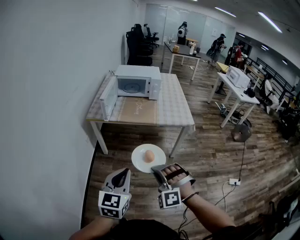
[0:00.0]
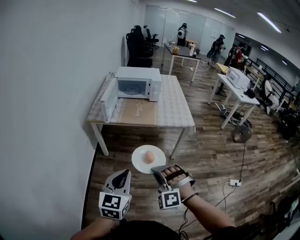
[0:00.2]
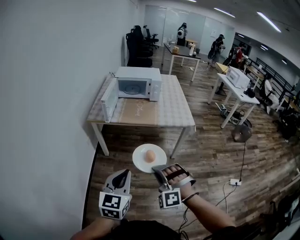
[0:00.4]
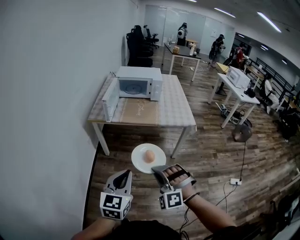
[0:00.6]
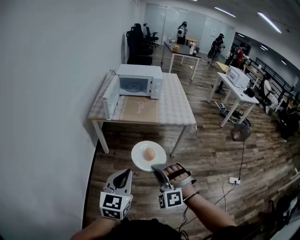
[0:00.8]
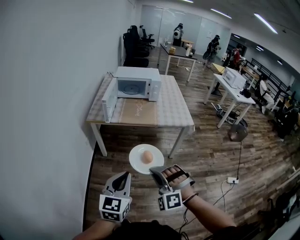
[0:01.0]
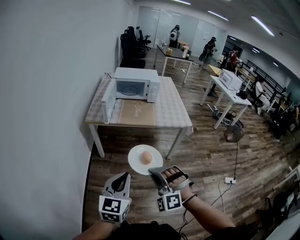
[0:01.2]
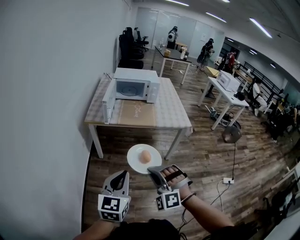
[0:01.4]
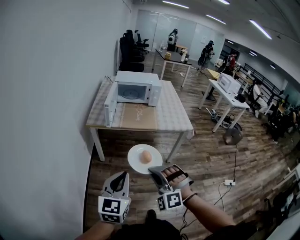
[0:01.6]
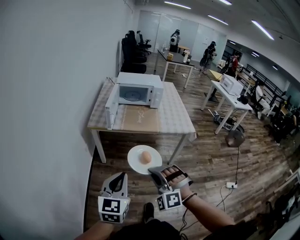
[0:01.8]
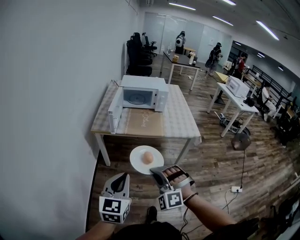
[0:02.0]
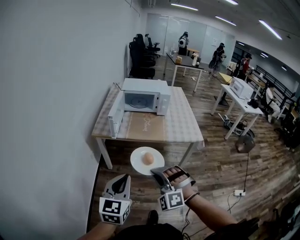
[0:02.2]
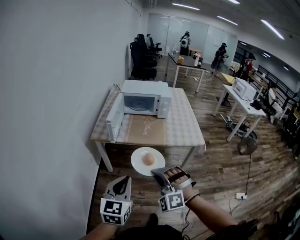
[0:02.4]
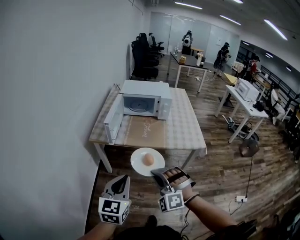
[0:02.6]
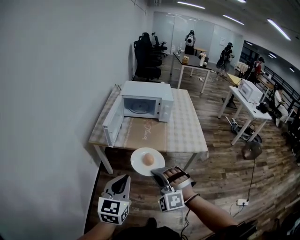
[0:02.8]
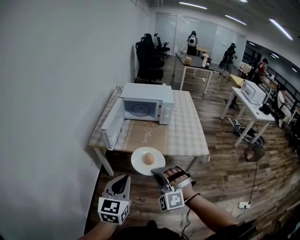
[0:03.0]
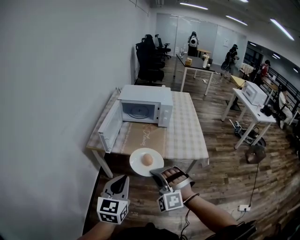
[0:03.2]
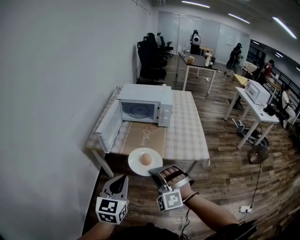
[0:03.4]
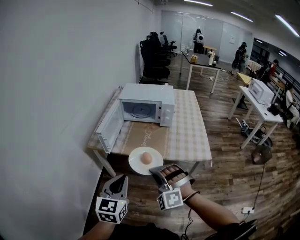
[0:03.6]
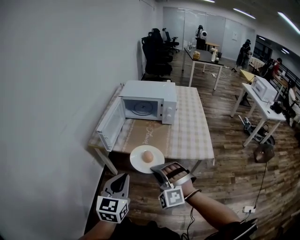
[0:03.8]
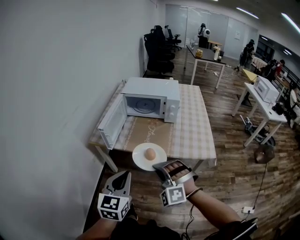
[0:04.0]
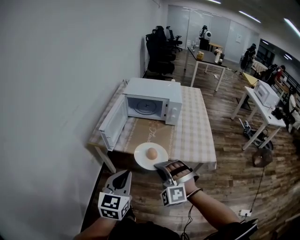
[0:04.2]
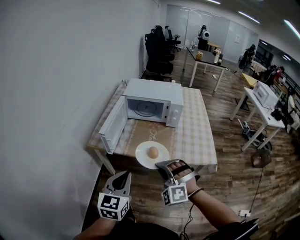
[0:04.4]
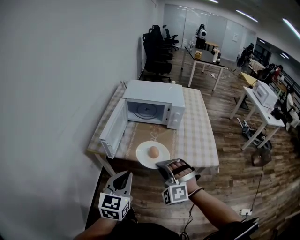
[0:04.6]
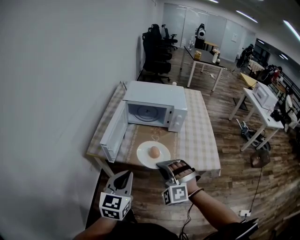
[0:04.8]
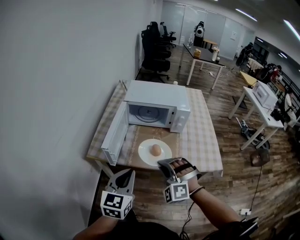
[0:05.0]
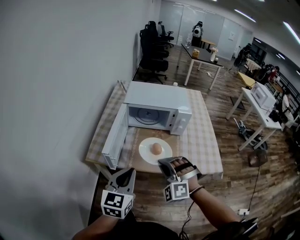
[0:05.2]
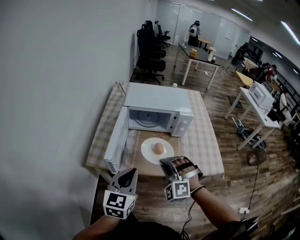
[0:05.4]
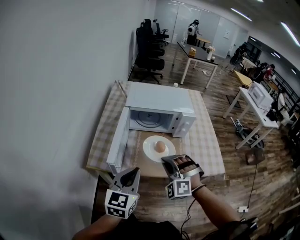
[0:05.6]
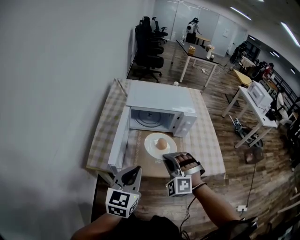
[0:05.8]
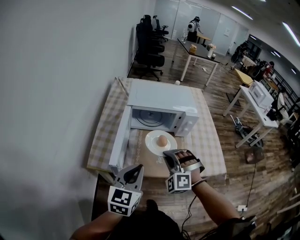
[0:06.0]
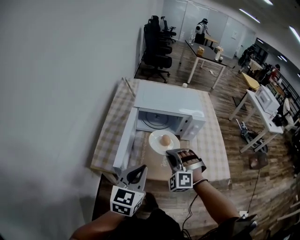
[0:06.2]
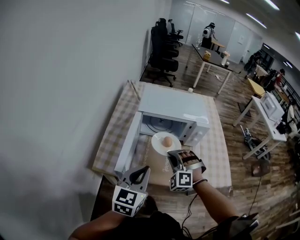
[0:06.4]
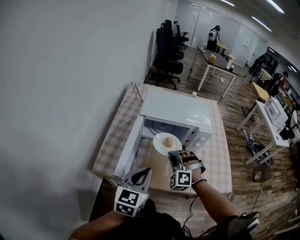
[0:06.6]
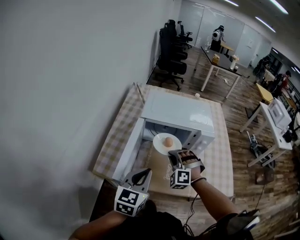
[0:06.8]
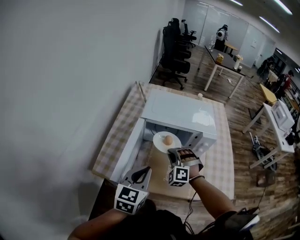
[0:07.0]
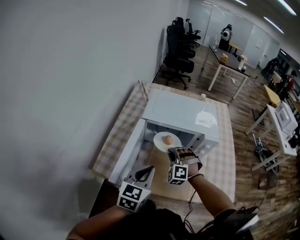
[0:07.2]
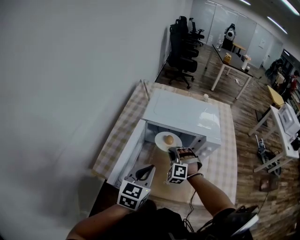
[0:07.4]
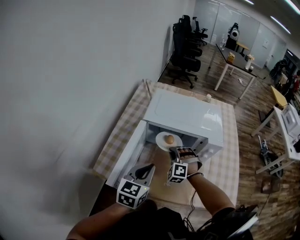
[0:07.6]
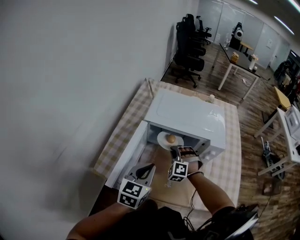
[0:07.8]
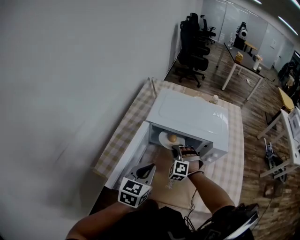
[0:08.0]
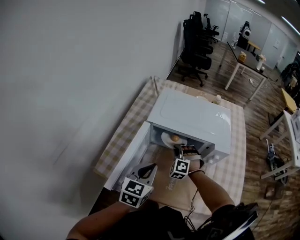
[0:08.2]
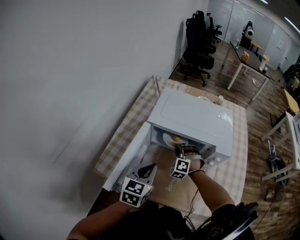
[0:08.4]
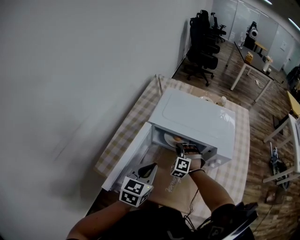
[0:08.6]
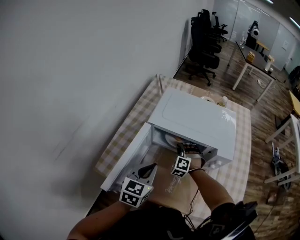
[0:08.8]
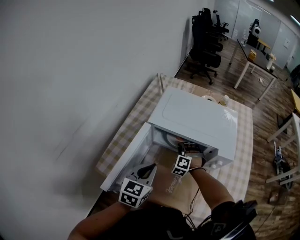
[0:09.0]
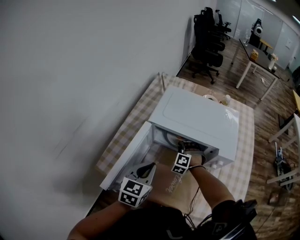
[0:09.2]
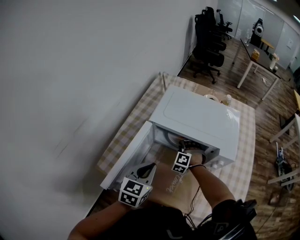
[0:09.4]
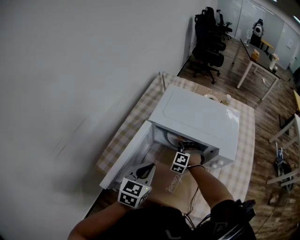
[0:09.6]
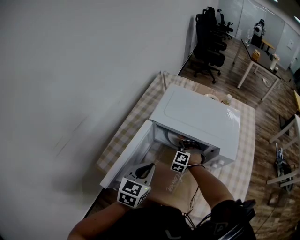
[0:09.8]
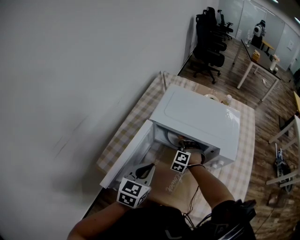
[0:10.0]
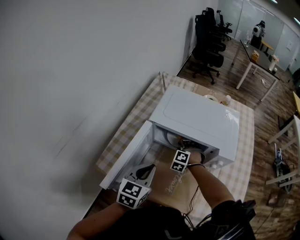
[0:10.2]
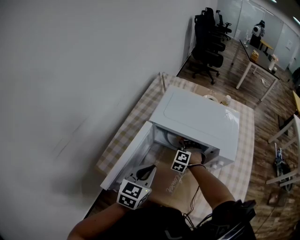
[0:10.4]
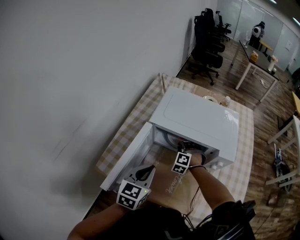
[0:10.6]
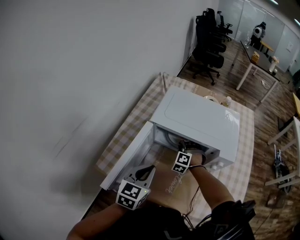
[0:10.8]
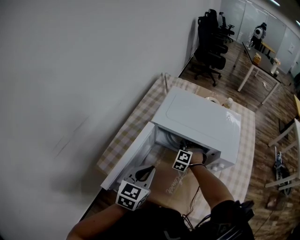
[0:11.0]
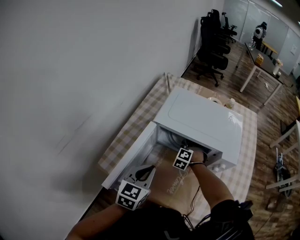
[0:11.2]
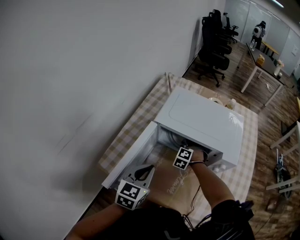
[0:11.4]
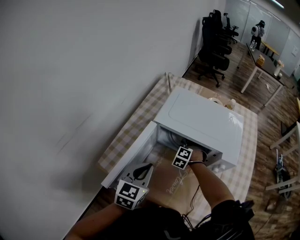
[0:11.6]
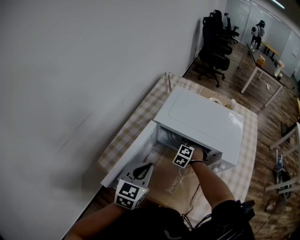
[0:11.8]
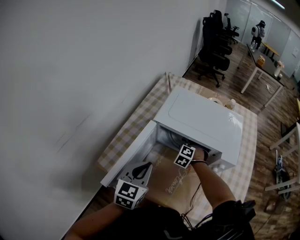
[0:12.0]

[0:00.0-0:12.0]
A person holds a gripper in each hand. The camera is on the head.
0:00.0 to 0:01.6: The left gripper shifts by approximately 10 cm.
0:01.6 to 0:03.0: The left gripper moves roughly 20 cm.
0:03.0 to 0:04.4: The left gripper shifts by approximately 10 cm.
0:04.4 to 0:06.0: The left gripper ends up approximately 20 cm from where it was.
0:06.0 to 0:07.6: The left gripper moves approximately 15 cm.
0:07.6 to 0:09.0: The left gripper changes place by approximately 5 cm.

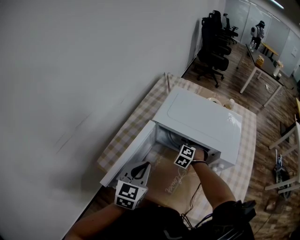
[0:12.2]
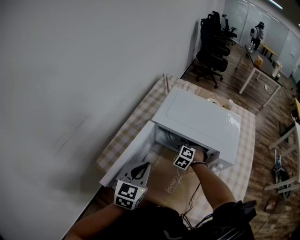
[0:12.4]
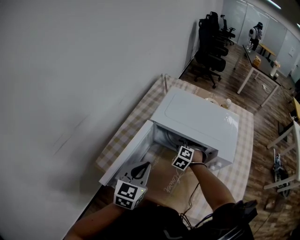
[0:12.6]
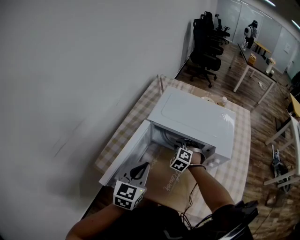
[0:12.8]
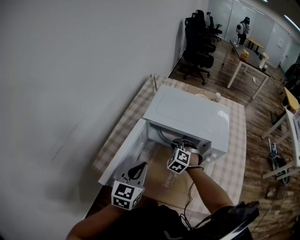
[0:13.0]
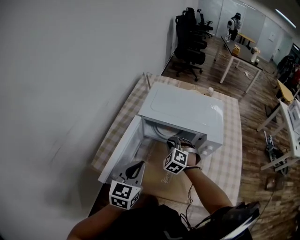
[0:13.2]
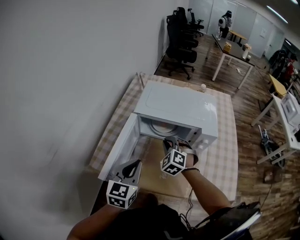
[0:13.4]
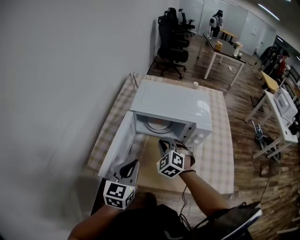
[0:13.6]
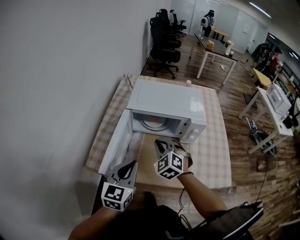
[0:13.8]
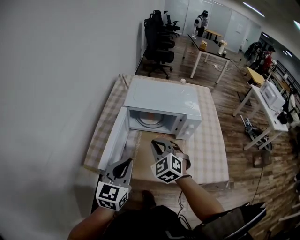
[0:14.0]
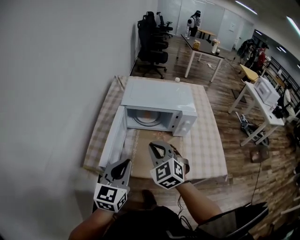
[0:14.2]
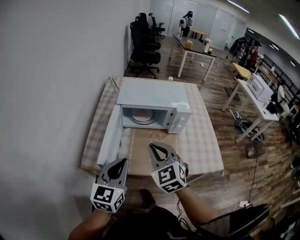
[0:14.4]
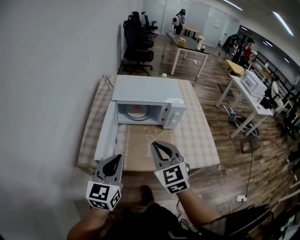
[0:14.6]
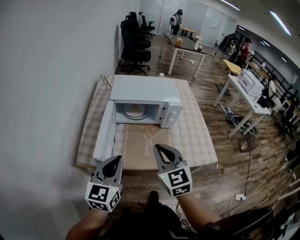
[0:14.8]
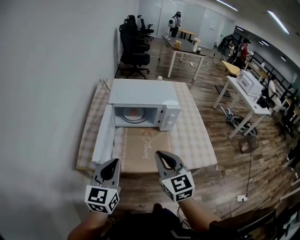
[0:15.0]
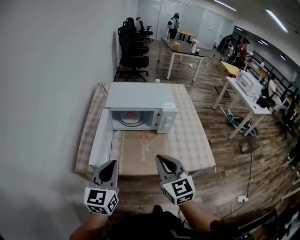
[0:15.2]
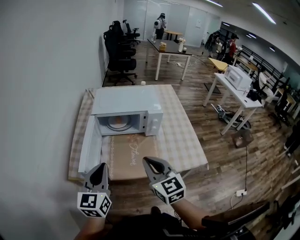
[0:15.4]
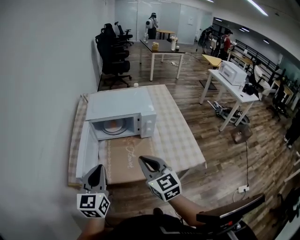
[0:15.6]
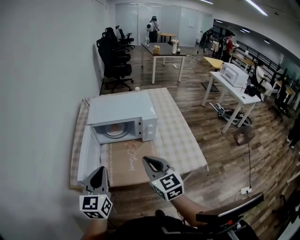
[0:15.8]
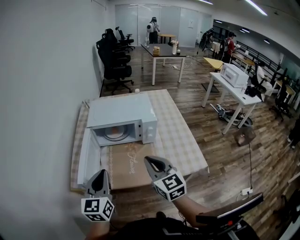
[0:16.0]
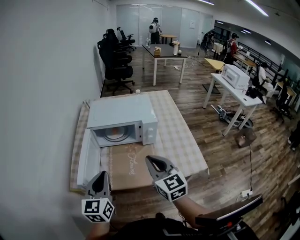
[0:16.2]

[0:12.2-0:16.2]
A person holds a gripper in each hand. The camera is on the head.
0:12.2 to 0:13.6: The left gripper ends up about 10 cm from where it was.
0:13.6 to 0:14.8: The left gripper moves roughly 15 cm.
0:14.8 to 0:16.2: The left gripper shifts by roughly 5 cm.

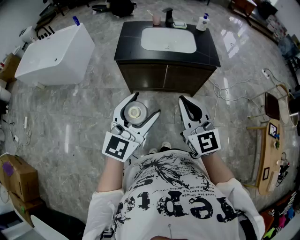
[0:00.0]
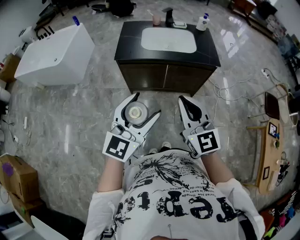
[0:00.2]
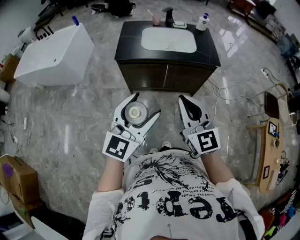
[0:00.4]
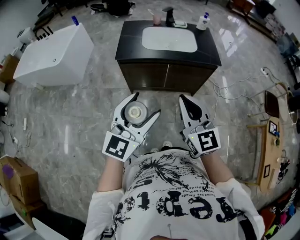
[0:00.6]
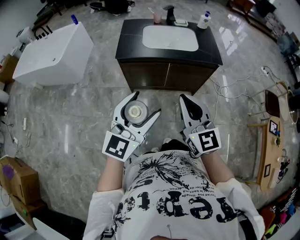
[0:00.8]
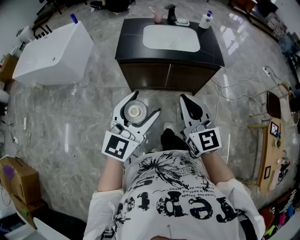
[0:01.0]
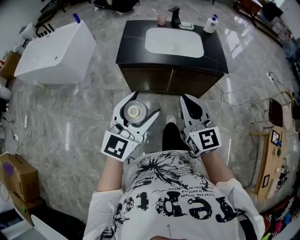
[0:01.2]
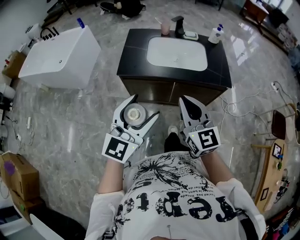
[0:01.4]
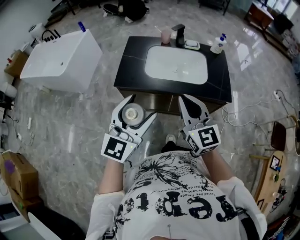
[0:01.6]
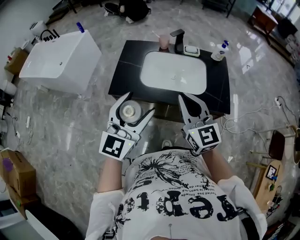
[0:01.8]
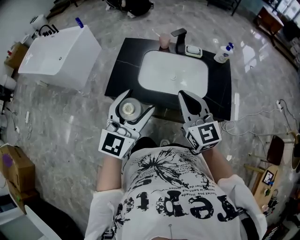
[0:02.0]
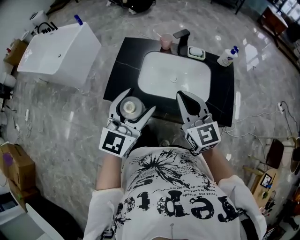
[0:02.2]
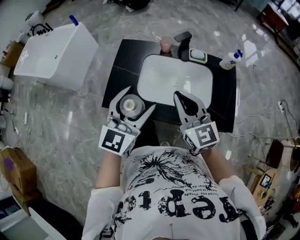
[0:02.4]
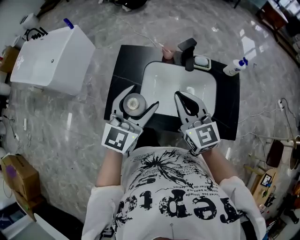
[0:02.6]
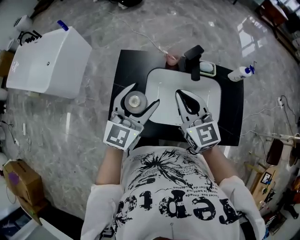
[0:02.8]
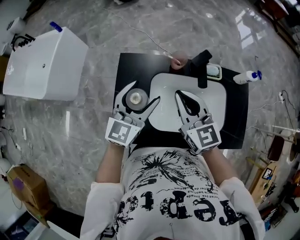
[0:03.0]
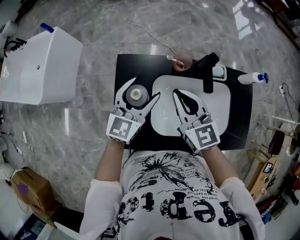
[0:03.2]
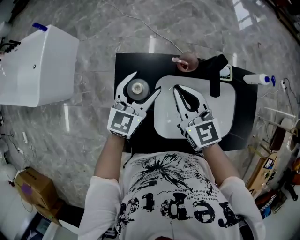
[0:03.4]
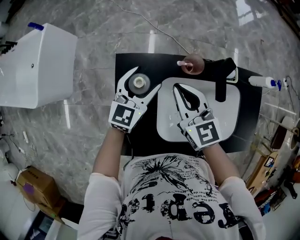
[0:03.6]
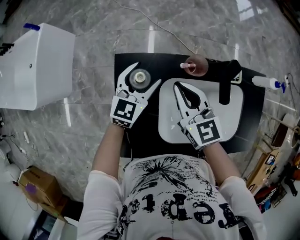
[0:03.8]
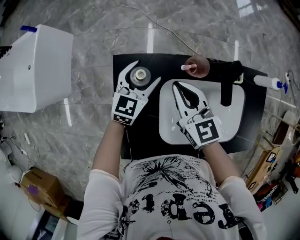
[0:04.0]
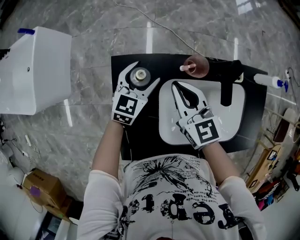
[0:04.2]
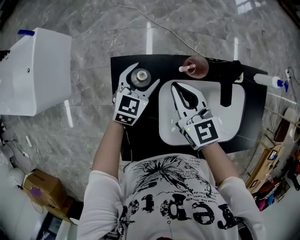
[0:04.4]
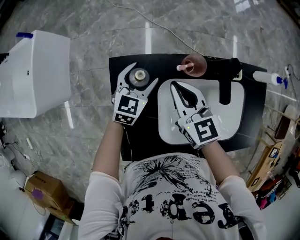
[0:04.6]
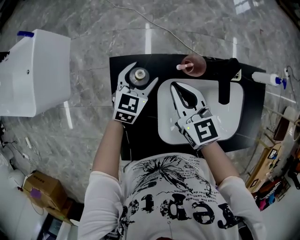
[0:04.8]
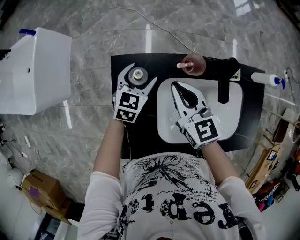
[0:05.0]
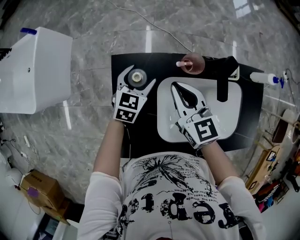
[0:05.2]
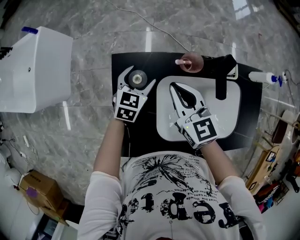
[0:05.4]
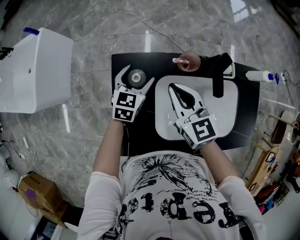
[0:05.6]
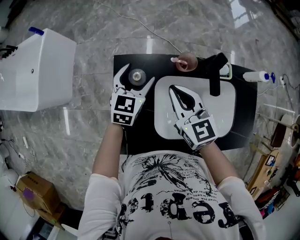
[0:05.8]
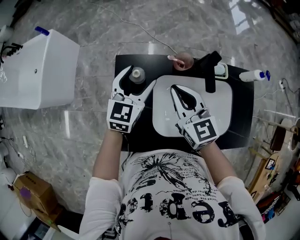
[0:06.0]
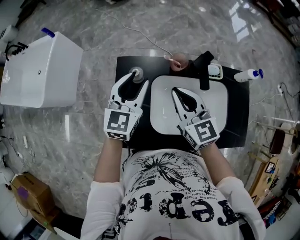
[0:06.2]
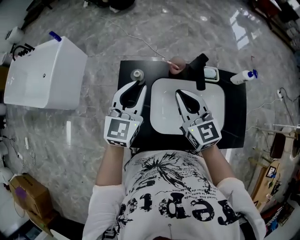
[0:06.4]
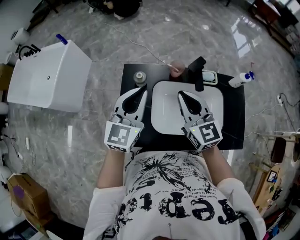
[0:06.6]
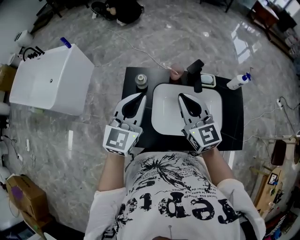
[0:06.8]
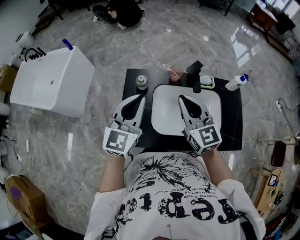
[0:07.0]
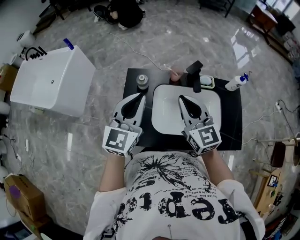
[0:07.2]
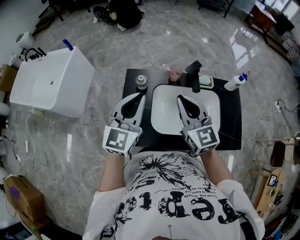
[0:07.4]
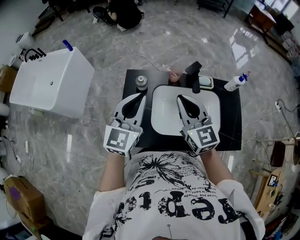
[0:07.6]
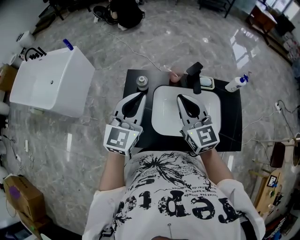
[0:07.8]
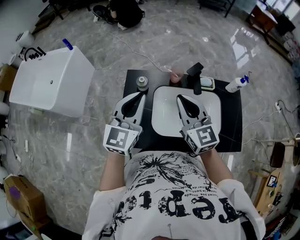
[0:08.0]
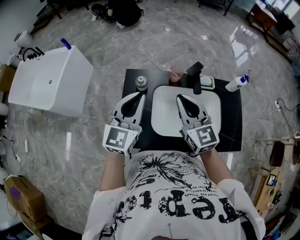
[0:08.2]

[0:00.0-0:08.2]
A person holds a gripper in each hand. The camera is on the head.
0:00.0 to 0:01.6: The two grippers go about 30 cm forward.
0:01.6 to 0:03.2: Both grippers are carried forward, about 60 cm.
0:03.2 to 0:05.0: The left gripper is displaced downward and forward by some 25 cm, and changes its angle by about 30 degrees. Meanwhile the right gripper goes approximately 15 cm downward and forward.
0:05.0 to 0:06.6: The left gripper goes some 35 cm upward and backward, swivels some 30 degrees, and closes its fingers; the right gripper moves upward and backward, about 25 cm.
